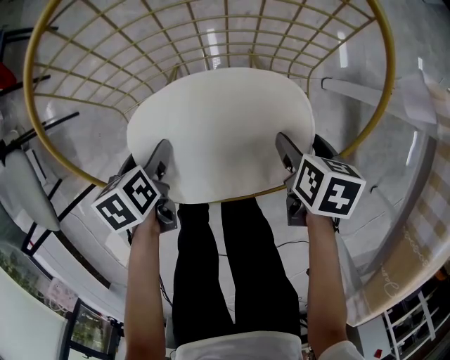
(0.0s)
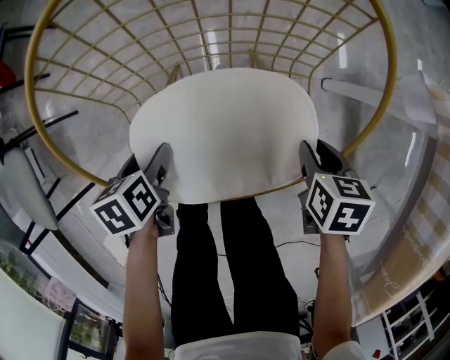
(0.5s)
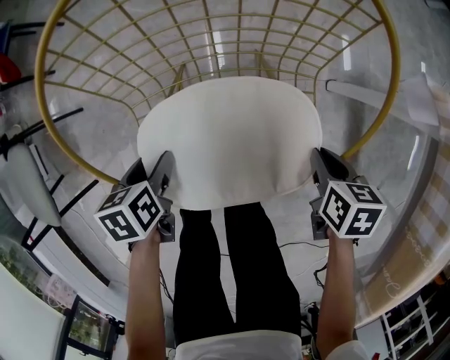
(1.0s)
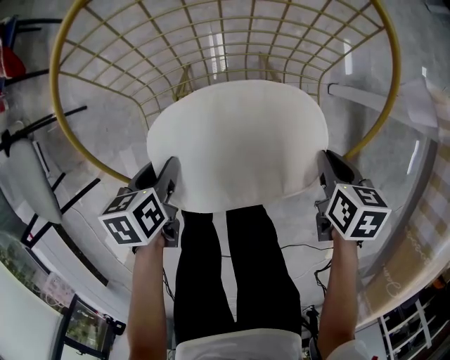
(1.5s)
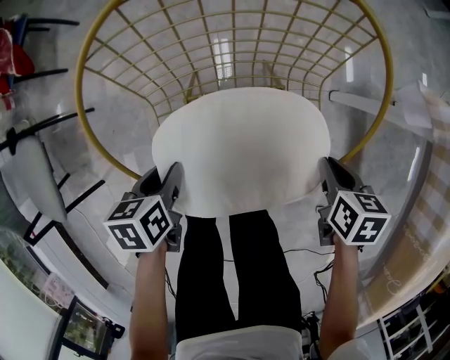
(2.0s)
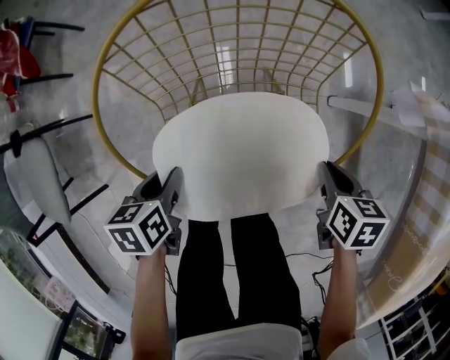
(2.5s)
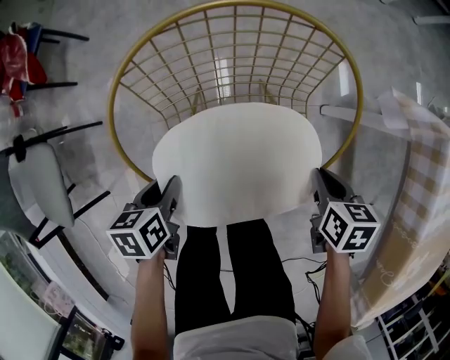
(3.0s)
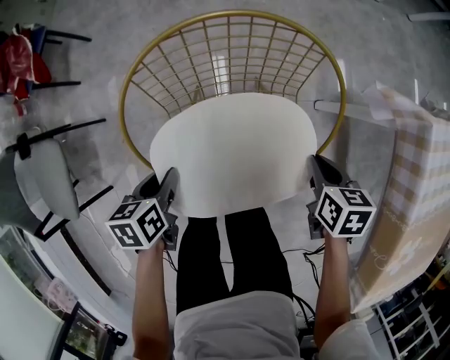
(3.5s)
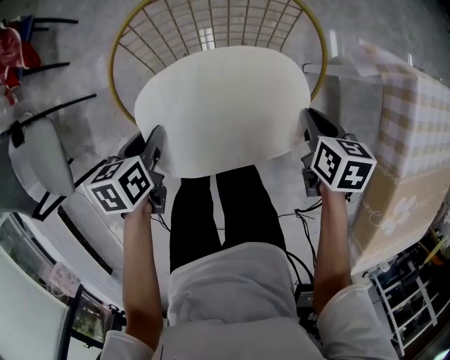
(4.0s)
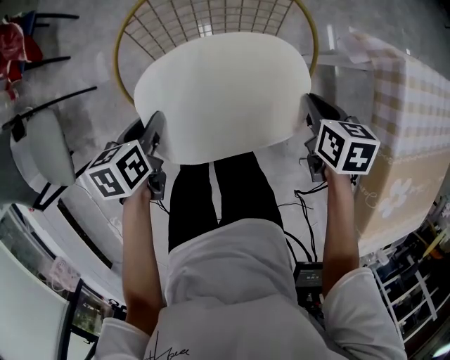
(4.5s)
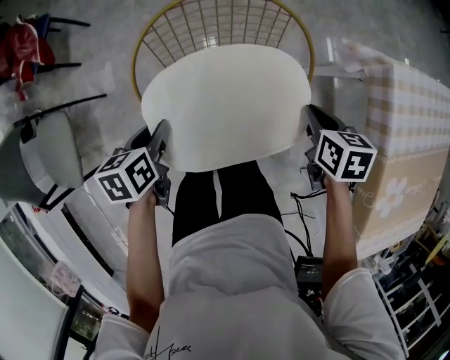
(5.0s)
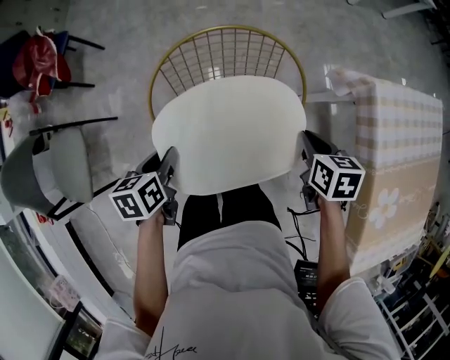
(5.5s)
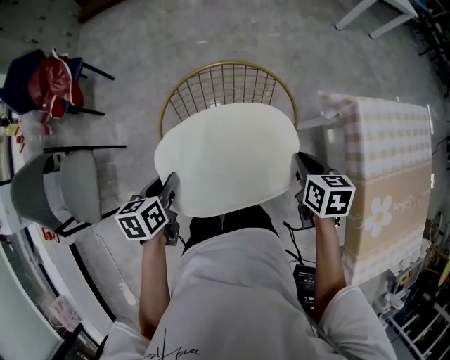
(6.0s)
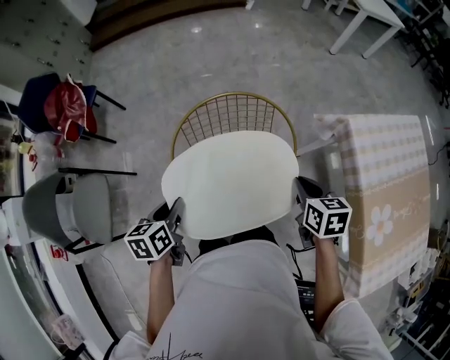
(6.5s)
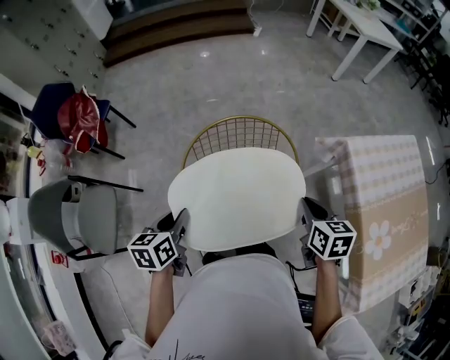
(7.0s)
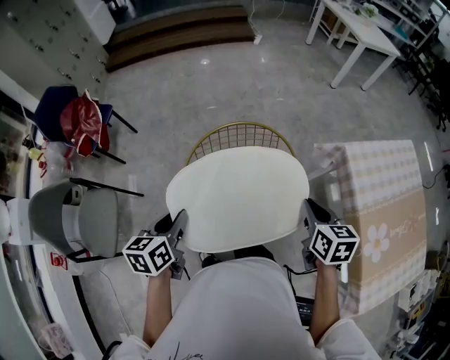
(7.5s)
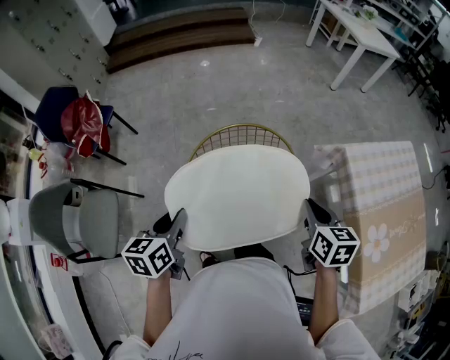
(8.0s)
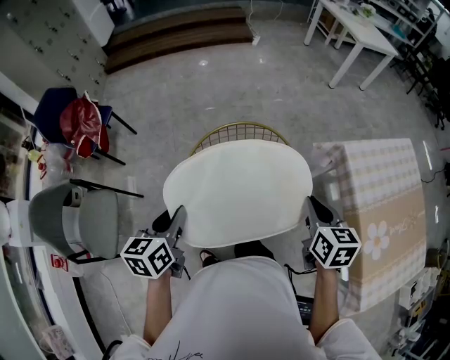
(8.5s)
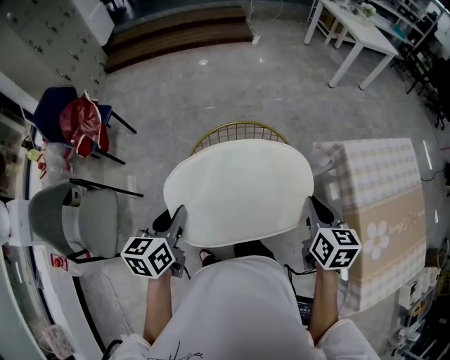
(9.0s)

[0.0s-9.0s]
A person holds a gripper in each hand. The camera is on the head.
0.0s to 2.0s: Both grippers travel together upward, approximately 5 cm. The left gripper closes up, while the right gripper closes up.
2.0s to 4.5s: The two grippers go approximately 15 cm upward.
4.5s to 7.0s: The grippers both shift upward by approximately 20 cm.
7.0s to 9.0s: Both grippers travel together upward, roughly 5 cm.

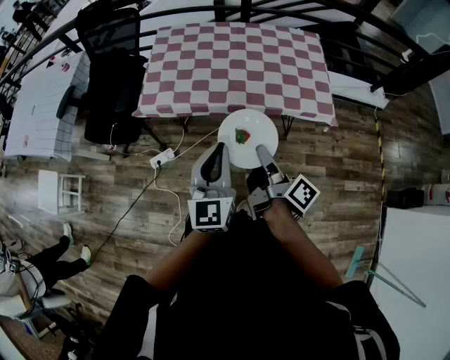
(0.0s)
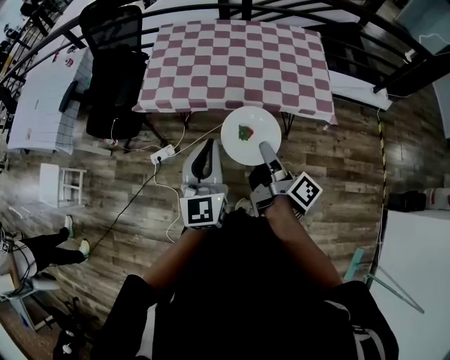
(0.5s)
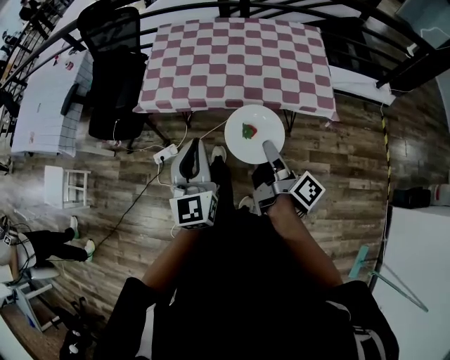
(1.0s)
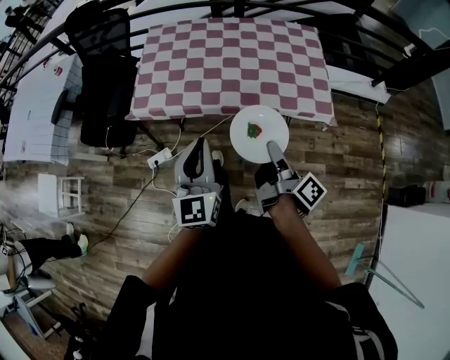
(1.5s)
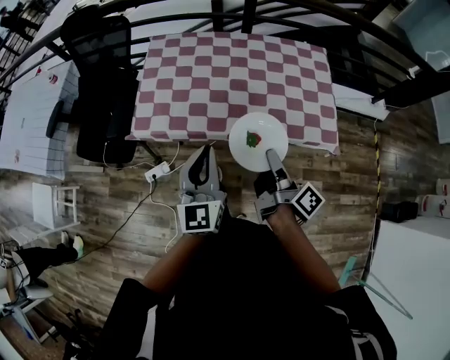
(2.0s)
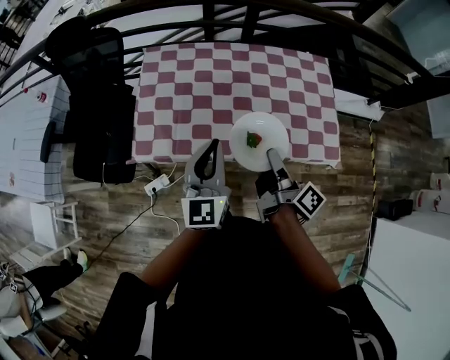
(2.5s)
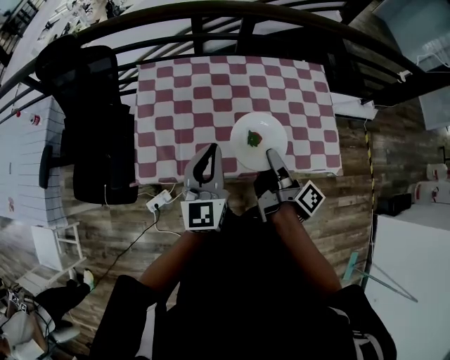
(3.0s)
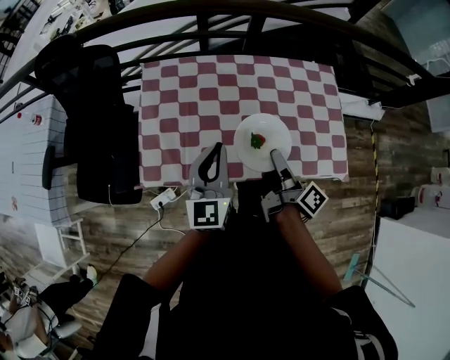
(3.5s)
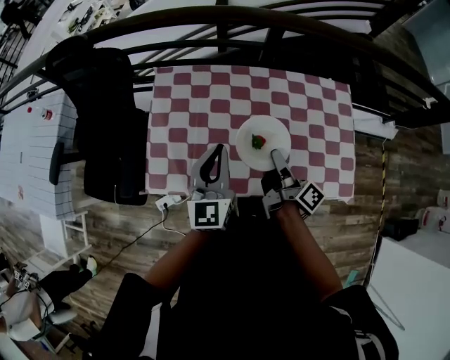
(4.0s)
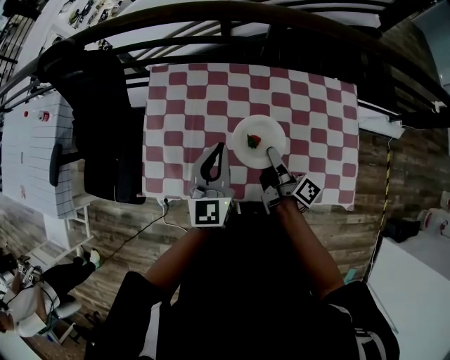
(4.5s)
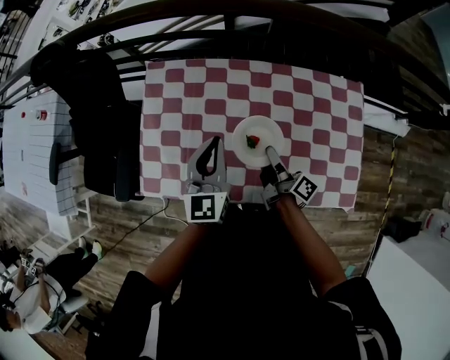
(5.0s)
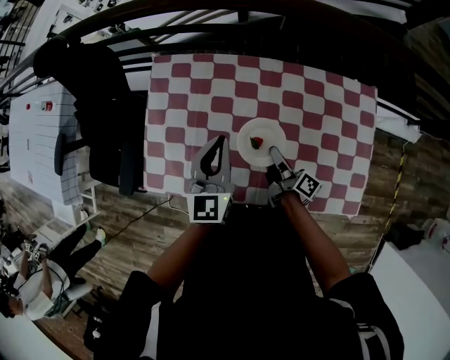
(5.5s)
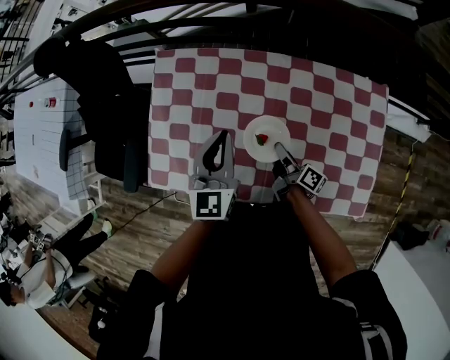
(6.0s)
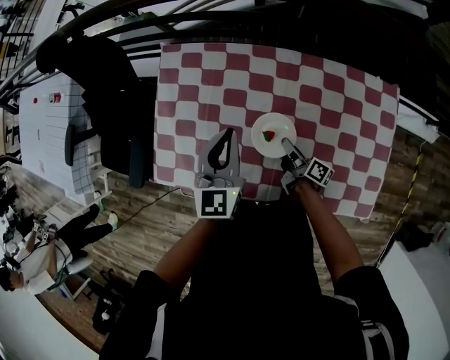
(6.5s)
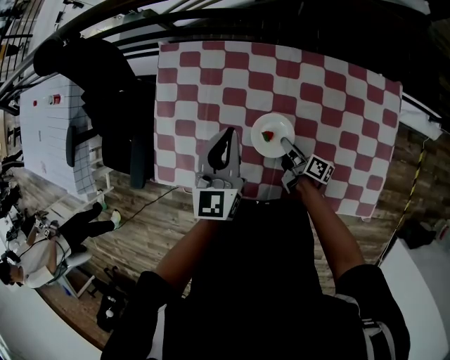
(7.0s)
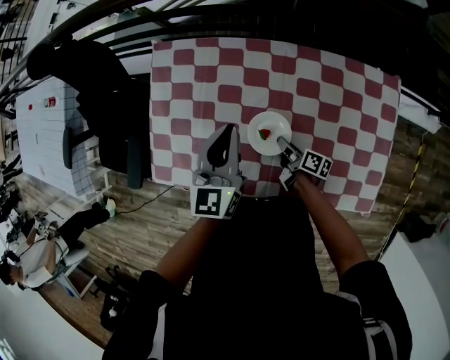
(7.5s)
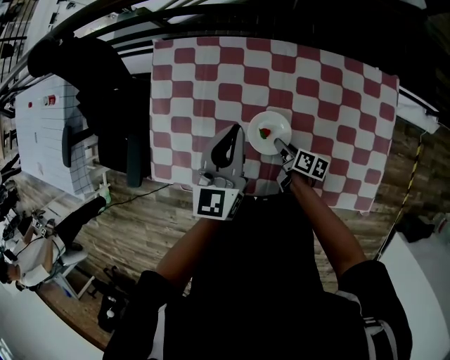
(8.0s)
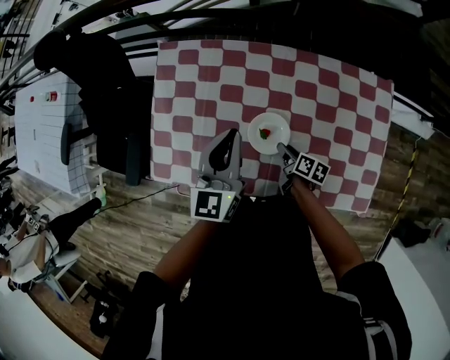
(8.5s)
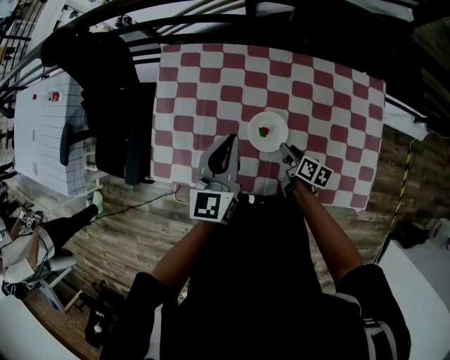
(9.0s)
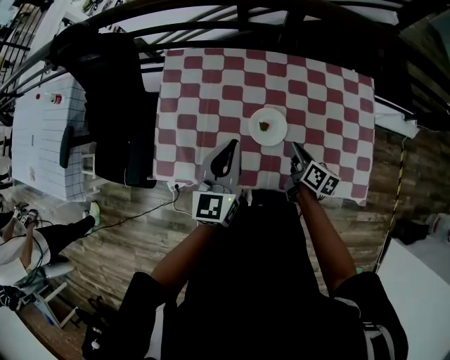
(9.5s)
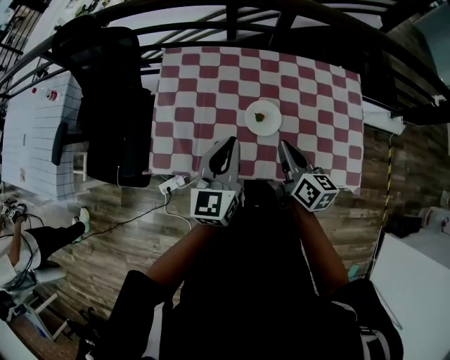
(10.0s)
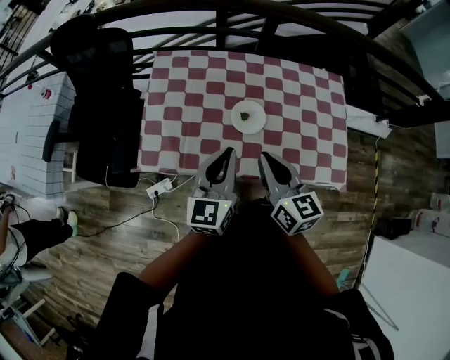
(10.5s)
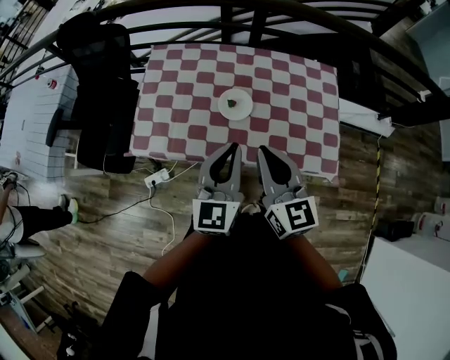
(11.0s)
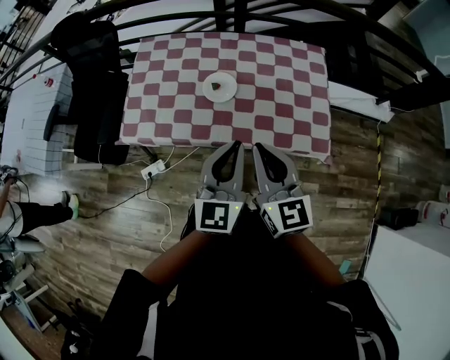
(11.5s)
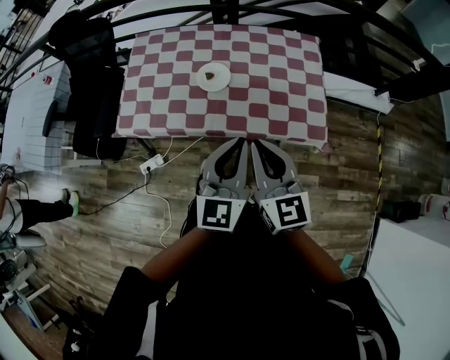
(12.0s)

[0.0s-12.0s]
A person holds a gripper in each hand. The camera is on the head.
0.0s to 2.0s: The left gripper shifts by some 15 cm.
2.0s to 4.0s: The left gripper ends up some 30 cm from where it was.
4.0s to 6.0s: The left gripper moves about 15 cm.
8.0s to 10.0s: The left gripper ends up roughly 20 cm from where it was.
10.0s to 12.0s: The left gripper moves some 35 cm.

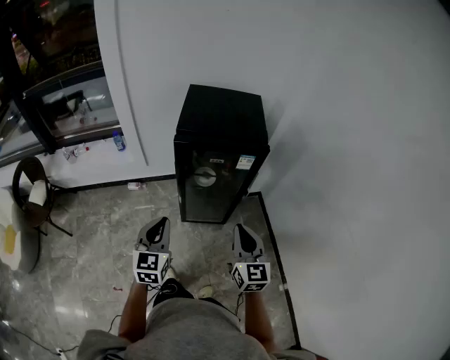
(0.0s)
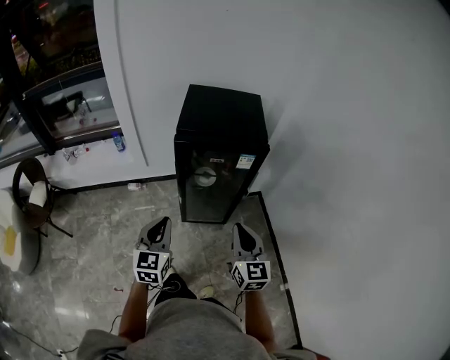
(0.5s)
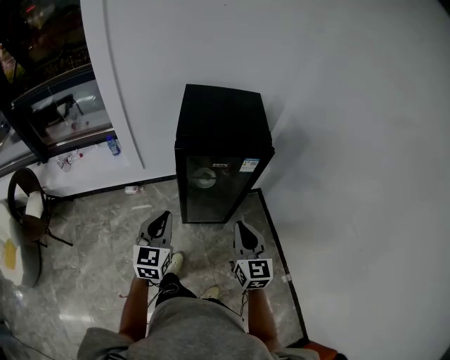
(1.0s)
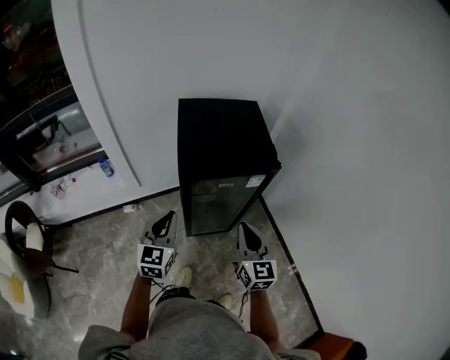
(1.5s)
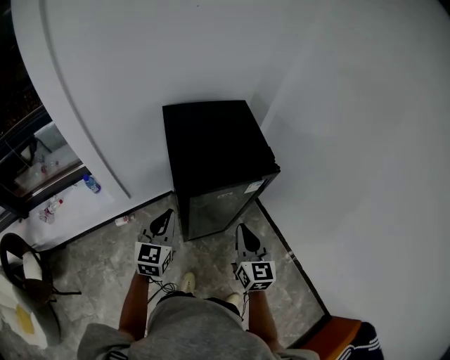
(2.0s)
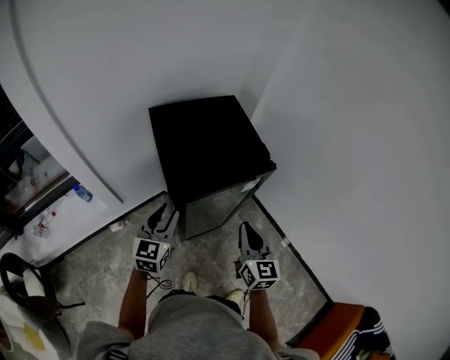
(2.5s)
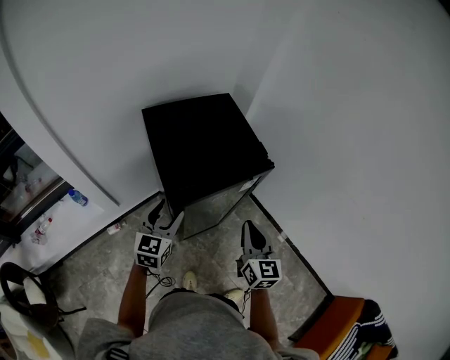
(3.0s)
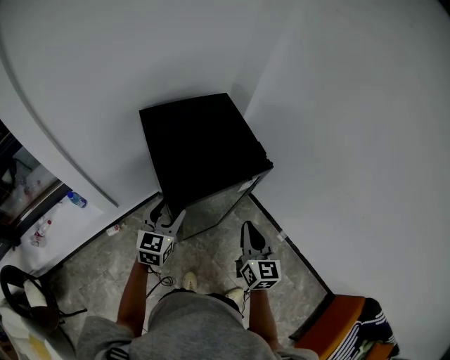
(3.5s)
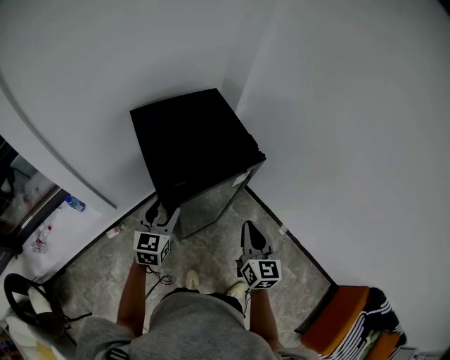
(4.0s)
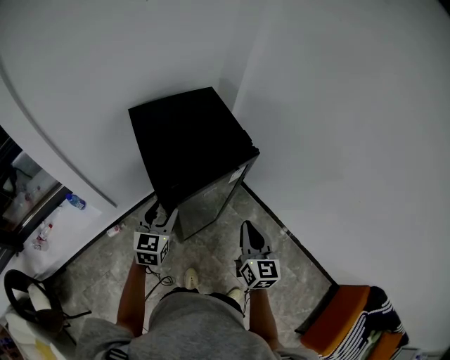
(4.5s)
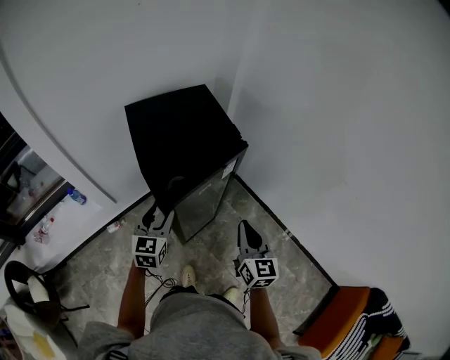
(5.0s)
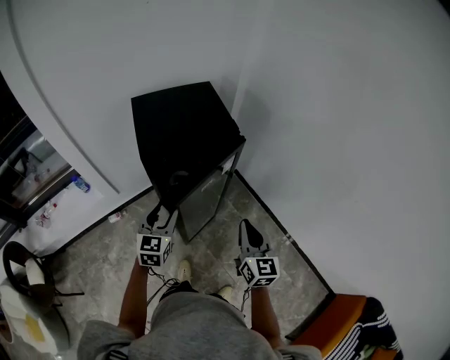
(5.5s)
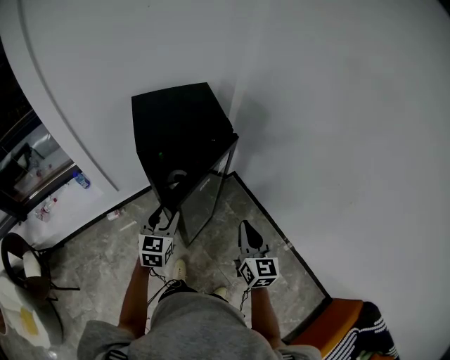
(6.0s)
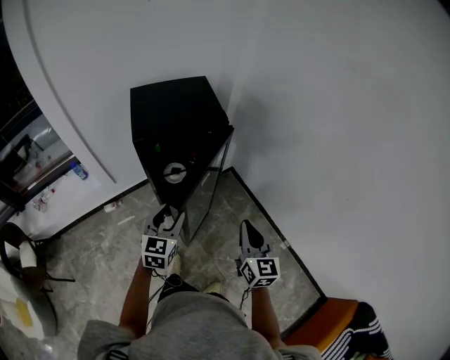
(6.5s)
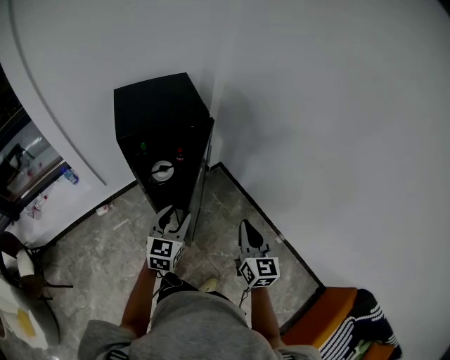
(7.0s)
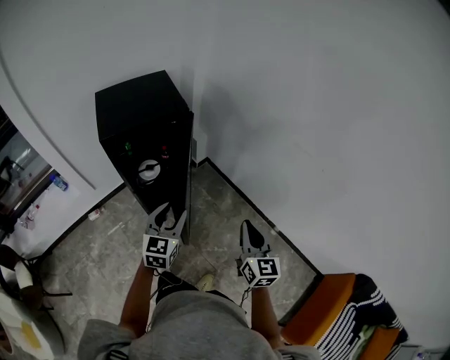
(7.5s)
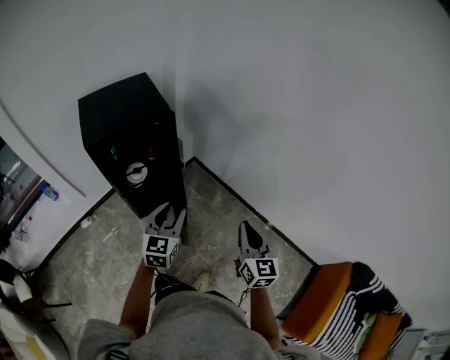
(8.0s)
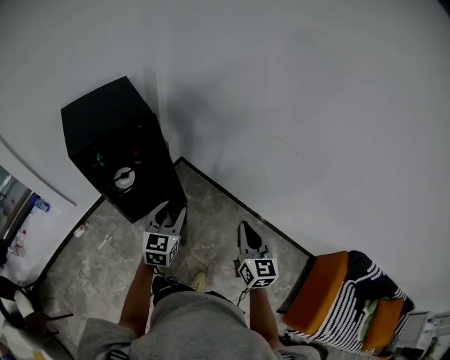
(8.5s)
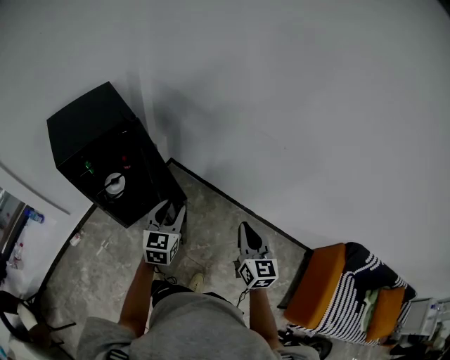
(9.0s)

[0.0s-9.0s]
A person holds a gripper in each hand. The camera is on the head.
0.0s to 2.0s: The right gripper travels forward and to the left by roughly 20 cm. The left gripper goes approximately 25 cm forward, and turns by roughly 20 degrees.
2.0s to 4.5s: The left gripper ends up approximately 5 cm from where it was, and opens up. The right gripper travels to the right by some 5 cm.
4.5s to 7.0s: The grippers both shift to the right and backward by approximately 25 cm.
7.0s to 9.0s: The two grippers go approximately 15 cm to the right.
